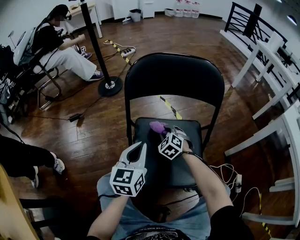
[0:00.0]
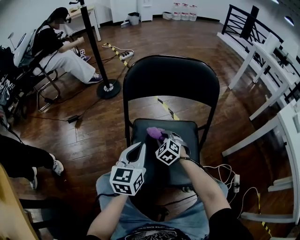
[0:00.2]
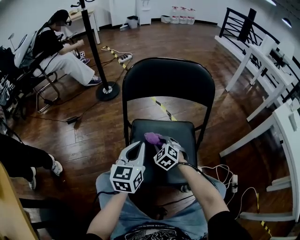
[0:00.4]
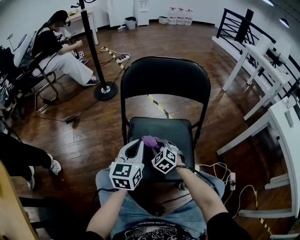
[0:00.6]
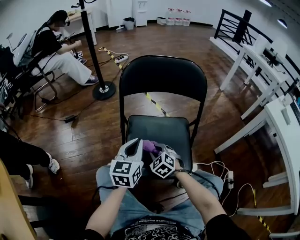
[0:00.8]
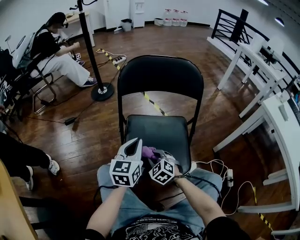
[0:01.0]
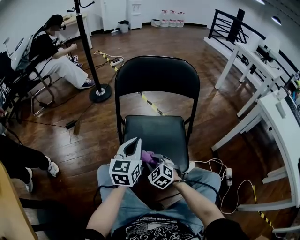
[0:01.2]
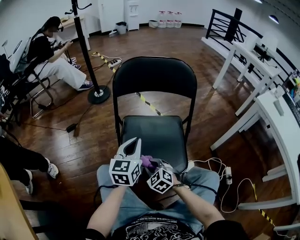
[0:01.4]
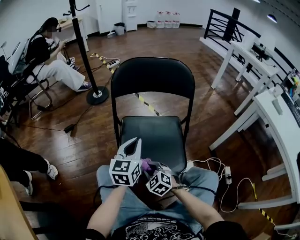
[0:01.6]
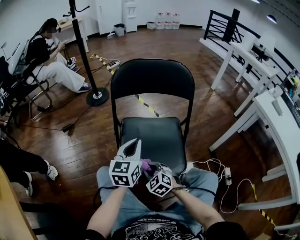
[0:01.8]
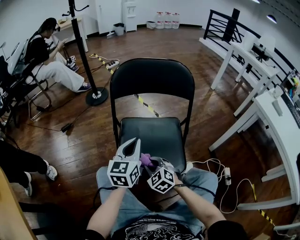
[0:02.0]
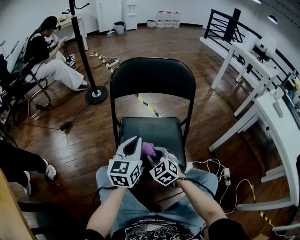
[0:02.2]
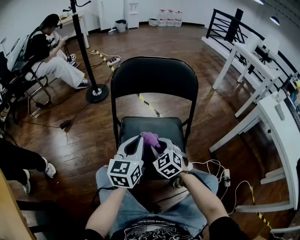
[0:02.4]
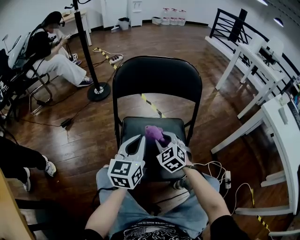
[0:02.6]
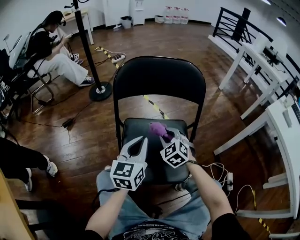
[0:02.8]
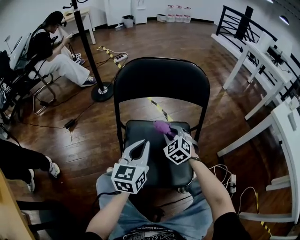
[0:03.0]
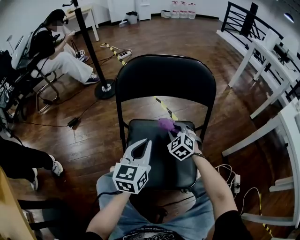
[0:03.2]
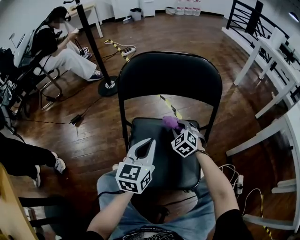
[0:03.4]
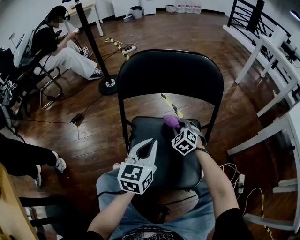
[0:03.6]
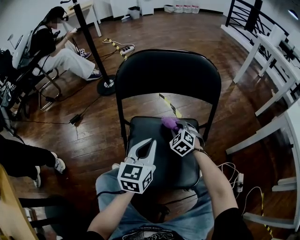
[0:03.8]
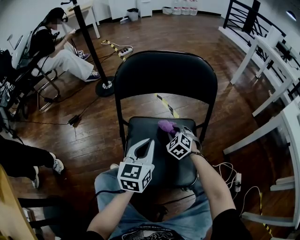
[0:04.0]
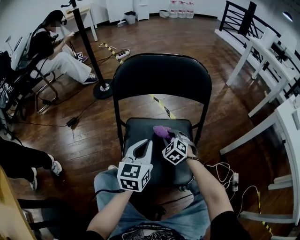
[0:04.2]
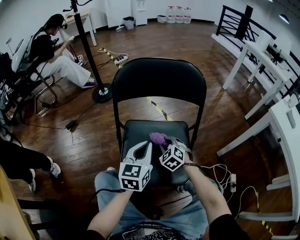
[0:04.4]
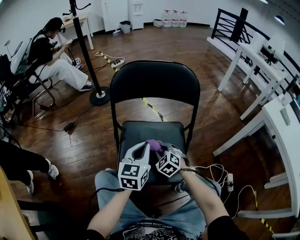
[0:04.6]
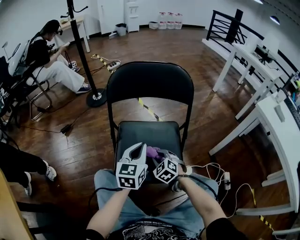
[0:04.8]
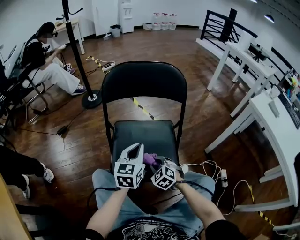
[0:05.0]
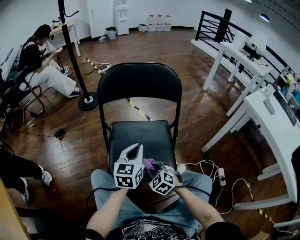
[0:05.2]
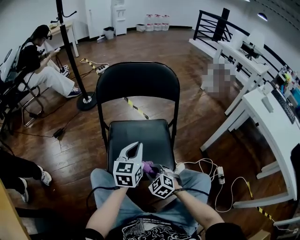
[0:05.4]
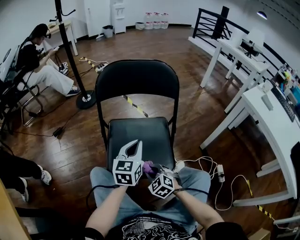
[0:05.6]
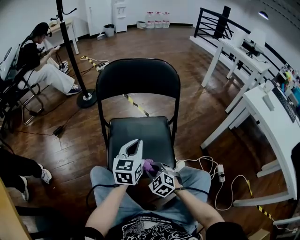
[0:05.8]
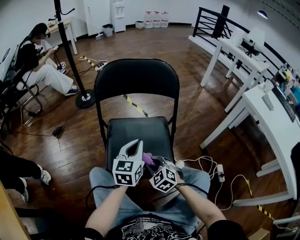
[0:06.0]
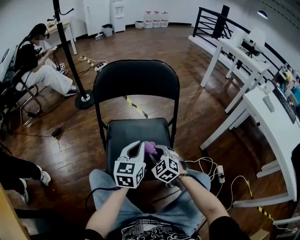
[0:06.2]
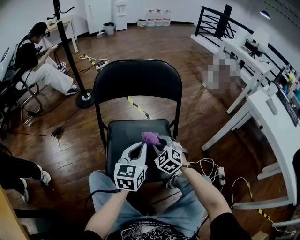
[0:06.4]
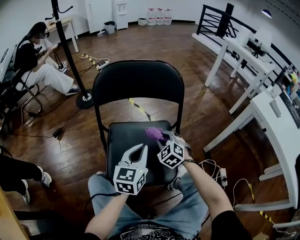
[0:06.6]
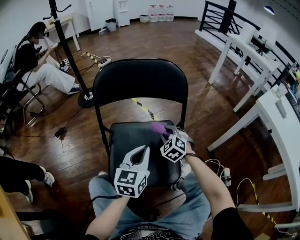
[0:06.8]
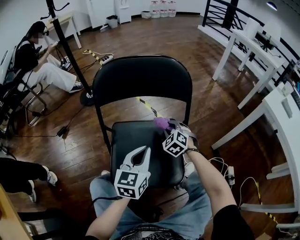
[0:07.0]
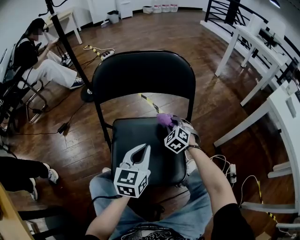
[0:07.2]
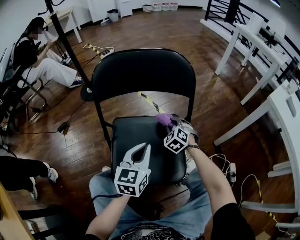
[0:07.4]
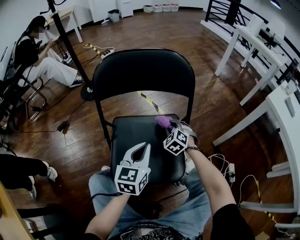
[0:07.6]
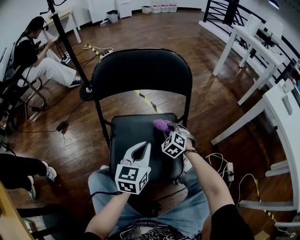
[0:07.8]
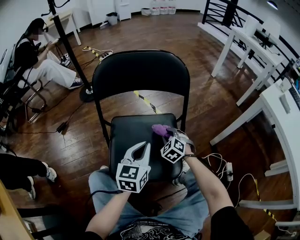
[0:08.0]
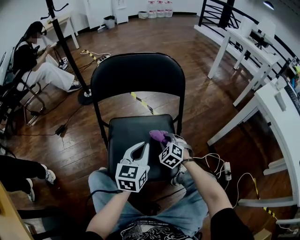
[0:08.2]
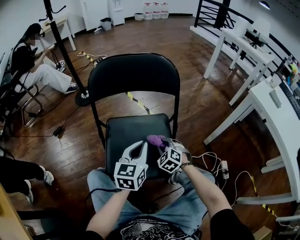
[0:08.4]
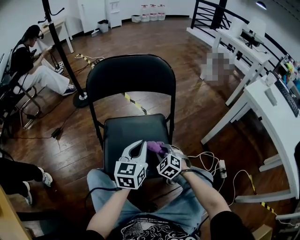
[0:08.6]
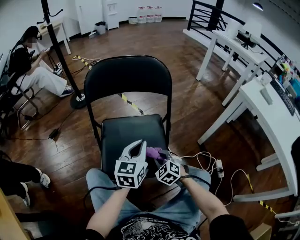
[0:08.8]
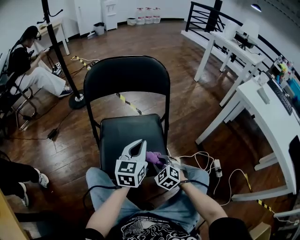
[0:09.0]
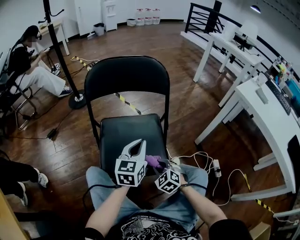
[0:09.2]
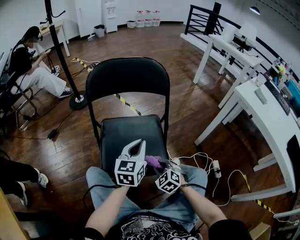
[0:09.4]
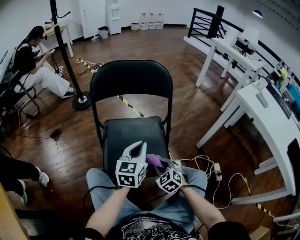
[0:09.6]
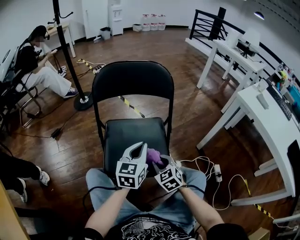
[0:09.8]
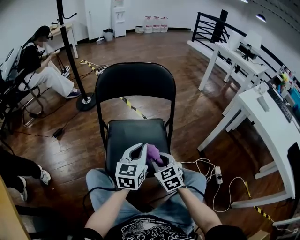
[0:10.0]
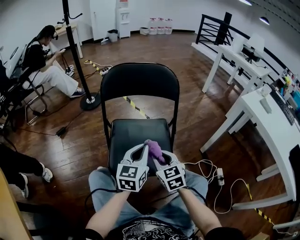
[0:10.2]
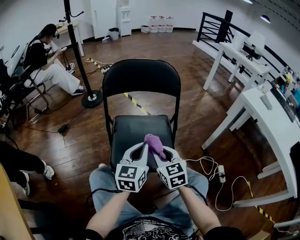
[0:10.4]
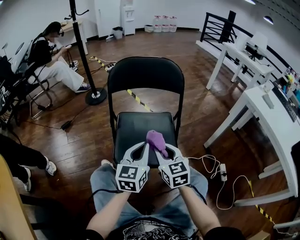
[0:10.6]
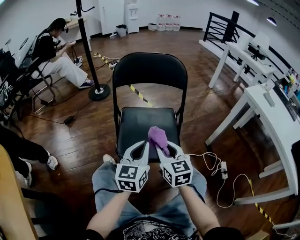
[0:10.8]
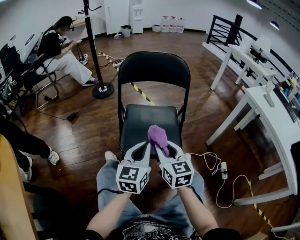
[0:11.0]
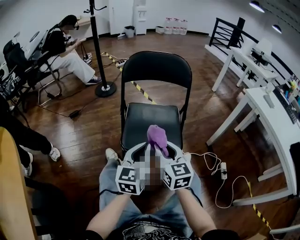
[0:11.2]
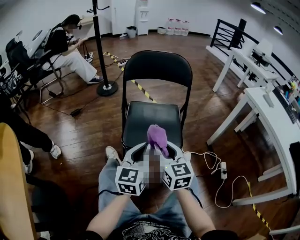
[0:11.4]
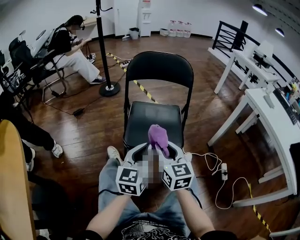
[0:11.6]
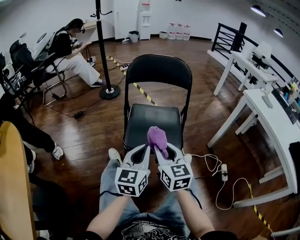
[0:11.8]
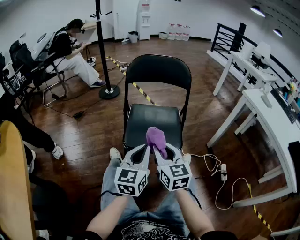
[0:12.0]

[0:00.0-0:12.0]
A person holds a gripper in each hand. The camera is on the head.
0:00.0 to 0:01.6: The left gripper heads backward, covering roughly 5 cm, while the right gripper is displaced backward by roughly 25 cm.
0:01.6 to 0:03.0: The right gripper shifts approximately 25 cm forward and to the right. Meanwhile the left gripper heads forward, covering roughly 5 cm.
0:03.0 to 0:04.4: The right gripper travels downward by about 5 cm.
0:04.4 to 0:06.0: The right gripper goes some 15 cm backward, while the left gripper moves approximately 5 cm.
0:06.0 to 0:07.6: The right gripper is displaced forward by about 25 cm.
0:07.6 to 0:09.0: The left gripper ends up approximately 5 cm from where it was. Meanwhile the right gripper heads backward, covering about 25 cm.
0:09.0 to 0:10.4: The left gripper heads backward, covering approximately 5 cm. Meanwhile the right gripper heads upward, covering roughly 15 cm, and rotates some 40 degrees.
0:10.4 to 0:12.0: The left gripper shifts some 15 cm backward, while the right gripper travels backward and upward by about 15 cm.

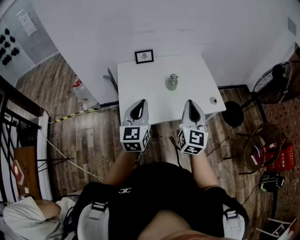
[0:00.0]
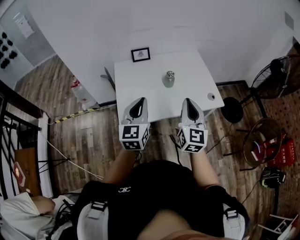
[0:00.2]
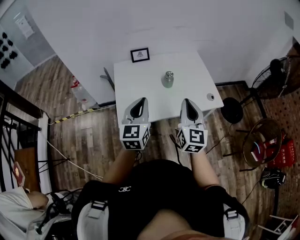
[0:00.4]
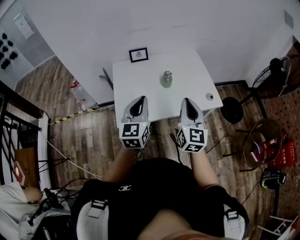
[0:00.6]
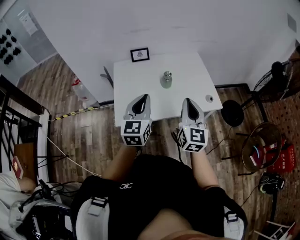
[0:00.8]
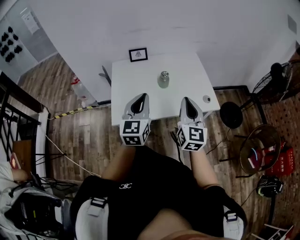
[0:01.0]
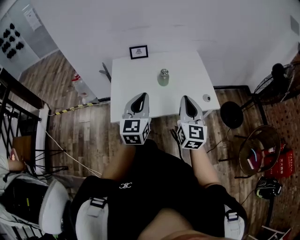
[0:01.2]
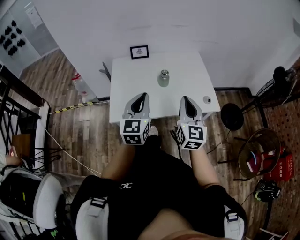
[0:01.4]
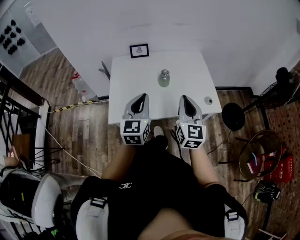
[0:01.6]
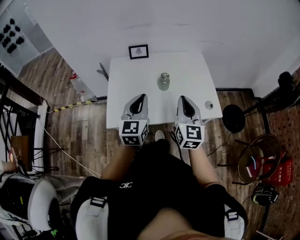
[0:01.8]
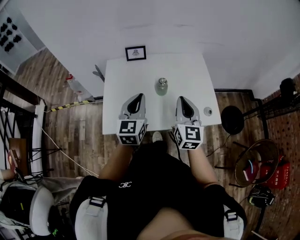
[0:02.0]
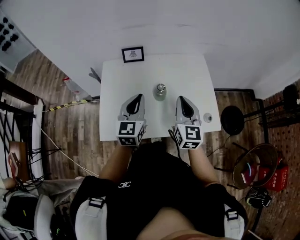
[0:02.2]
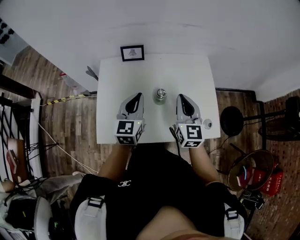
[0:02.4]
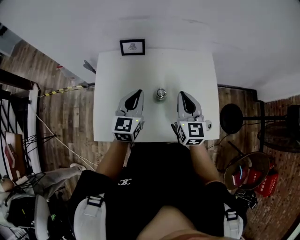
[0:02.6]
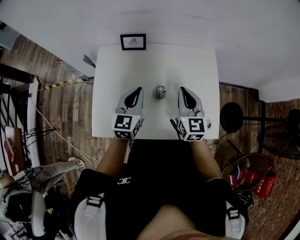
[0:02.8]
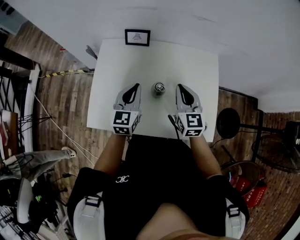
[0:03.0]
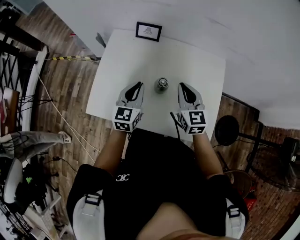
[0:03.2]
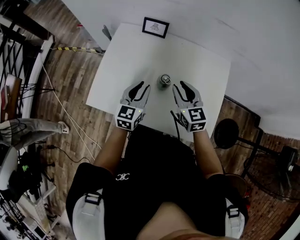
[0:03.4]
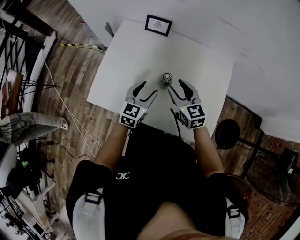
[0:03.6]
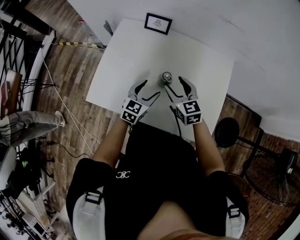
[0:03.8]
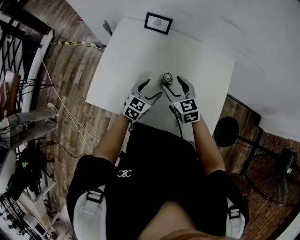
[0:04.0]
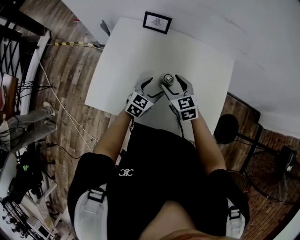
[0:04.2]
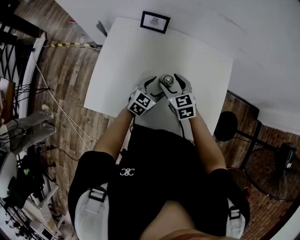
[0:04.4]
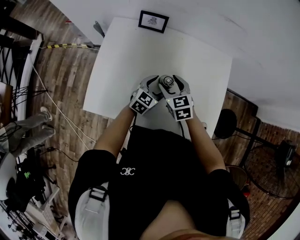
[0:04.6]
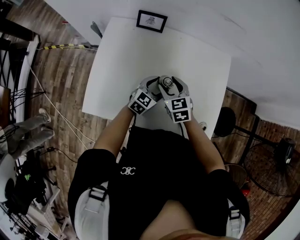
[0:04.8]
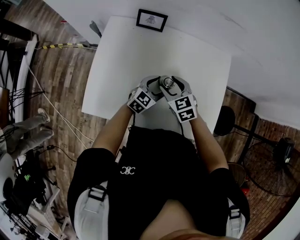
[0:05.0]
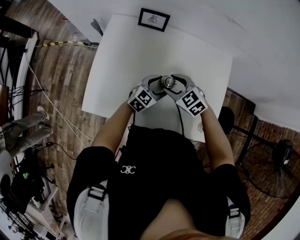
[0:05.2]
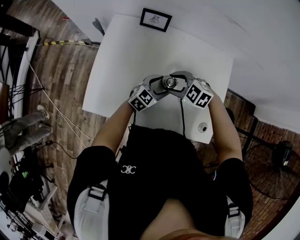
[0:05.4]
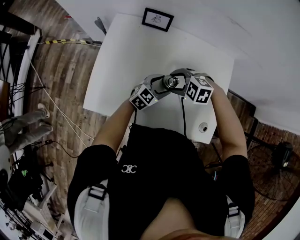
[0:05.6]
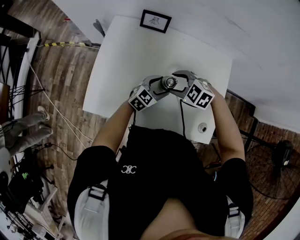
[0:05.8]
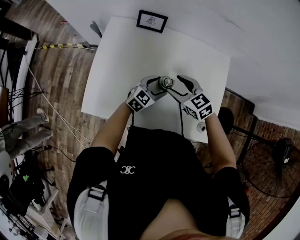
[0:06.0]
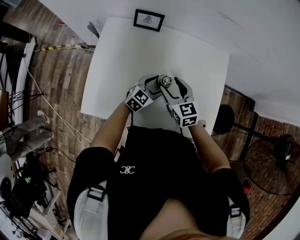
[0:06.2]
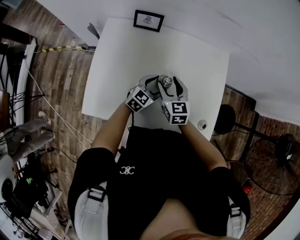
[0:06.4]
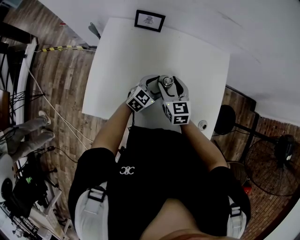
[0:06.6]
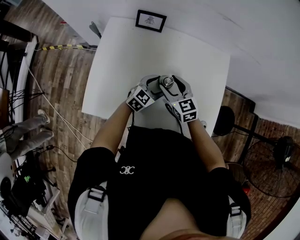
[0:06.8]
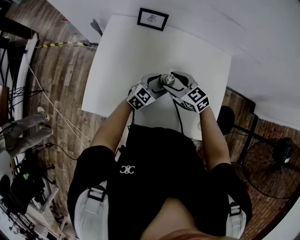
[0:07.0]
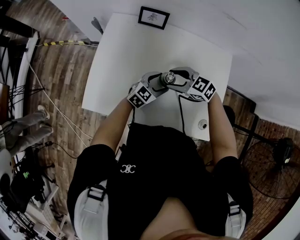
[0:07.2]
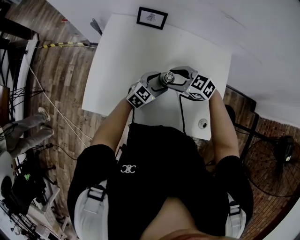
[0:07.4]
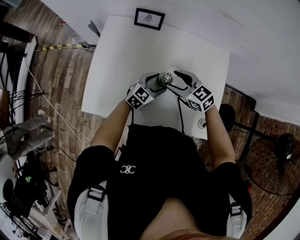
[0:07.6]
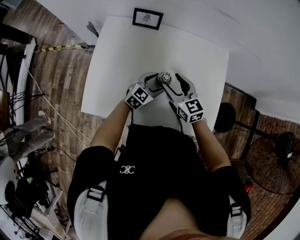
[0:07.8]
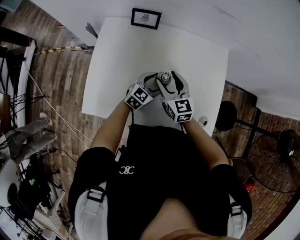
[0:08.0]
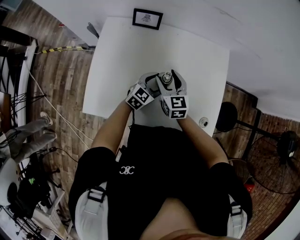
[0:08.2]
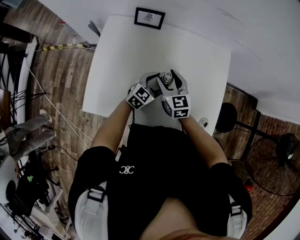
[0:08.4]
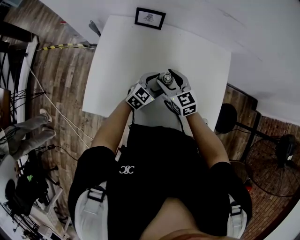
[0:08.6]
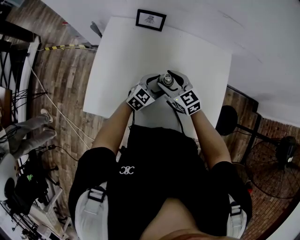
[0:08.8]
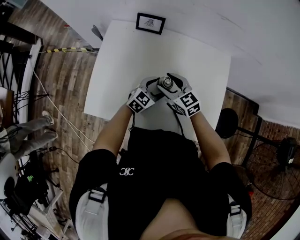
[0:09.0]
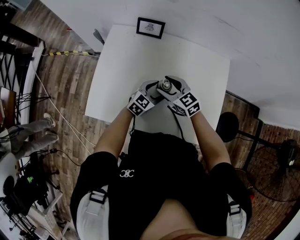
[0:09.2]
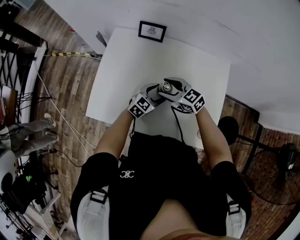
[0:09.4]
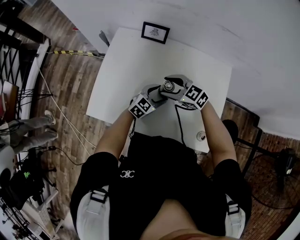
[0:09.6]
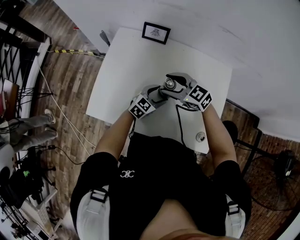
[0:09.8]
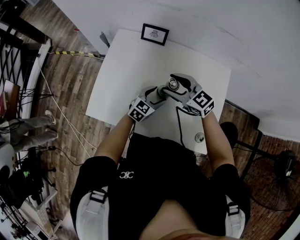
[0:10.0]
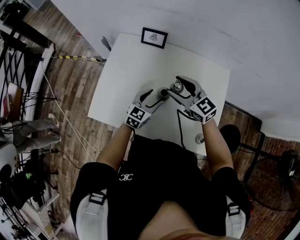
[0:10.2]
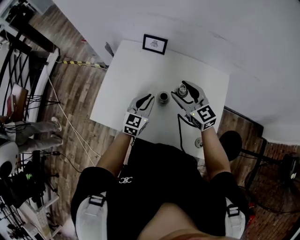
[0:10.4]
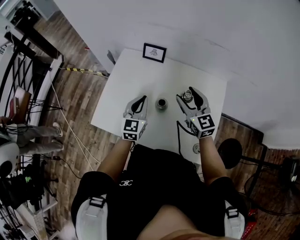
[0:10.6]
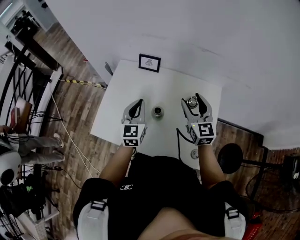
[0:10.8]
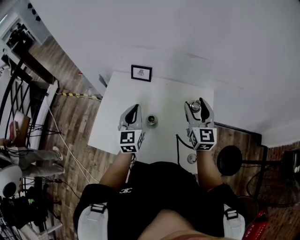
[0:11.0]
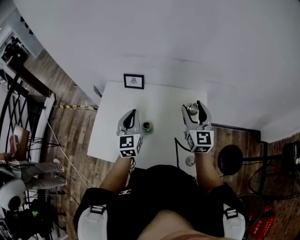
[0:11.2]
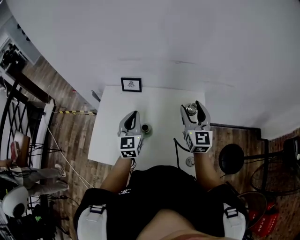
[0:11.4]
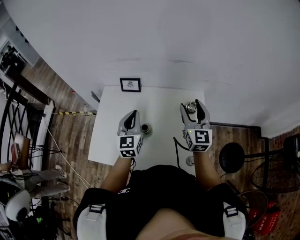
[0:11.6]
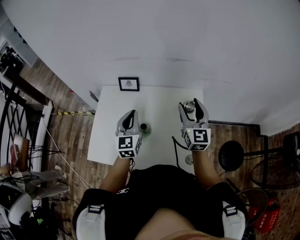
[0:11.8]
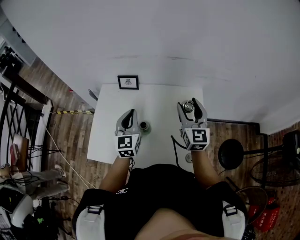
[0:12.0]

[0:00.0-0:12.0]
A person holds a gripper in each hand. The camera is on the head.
0:00.0 to 0:01.6: The grippers both shift to the right by about 10 cm.
0:01.6 to 0:03.0: Both grippers travel together forward, some 25 cm. The right gripper turns by some 30 degrees.
0:03.0 to 0:04.4: The left gripper shifts approximately 20 cm downward and to the right, rotates roughly 20 degrees, and opens its fingers; the right gripper is displaced downward and to the left by roughly 15 cm, swivels approximately 30 degrees, and opens up.
0:09.0 to 0:10.4: Both grippers move upward, about 10 cm. The left gripper turns by approximately 30 degrees, and closes up.
0:10.4 to 0:12.0: The right gripper heads to the right and upward, covering approximately 20 cm, and turns by roughly 40 degrees; the left gripper goes roughly 15 cm upward.
